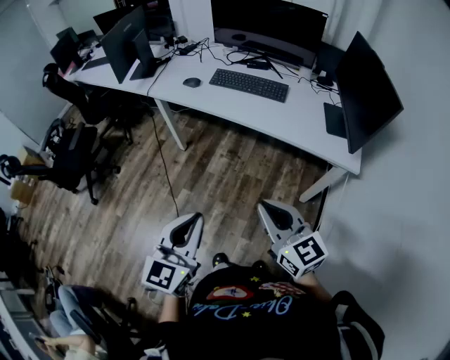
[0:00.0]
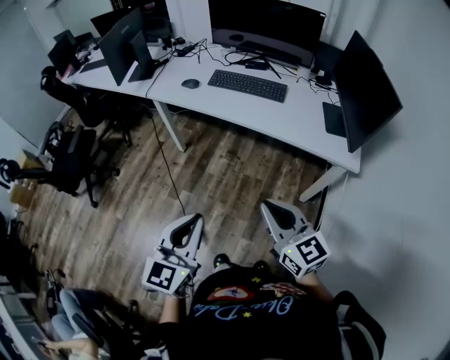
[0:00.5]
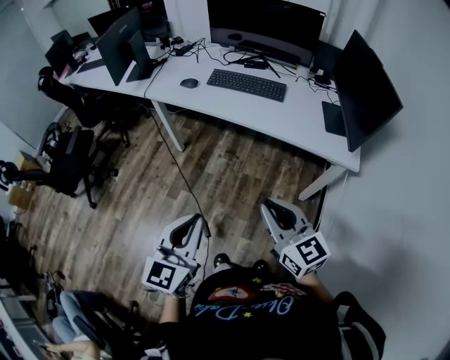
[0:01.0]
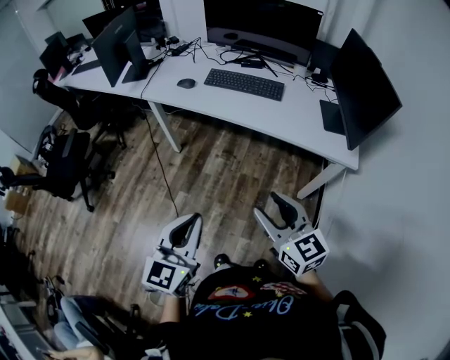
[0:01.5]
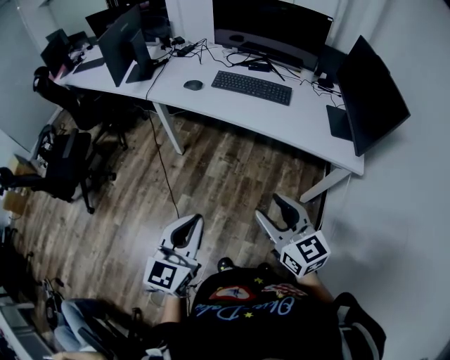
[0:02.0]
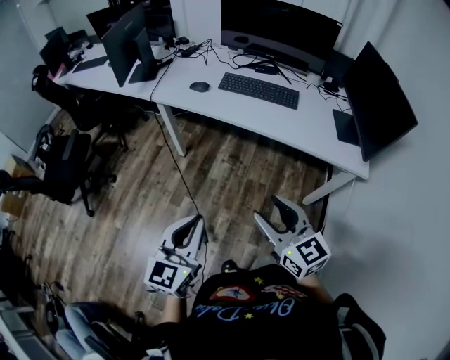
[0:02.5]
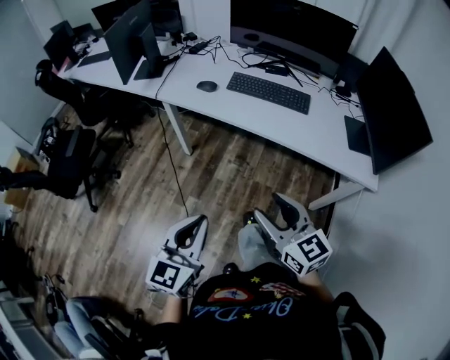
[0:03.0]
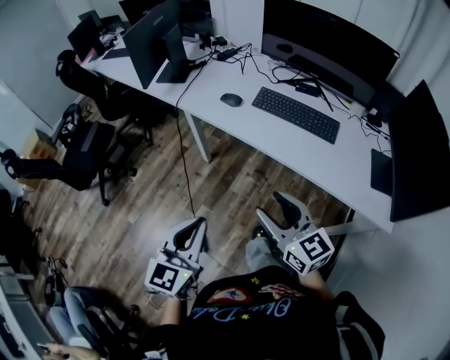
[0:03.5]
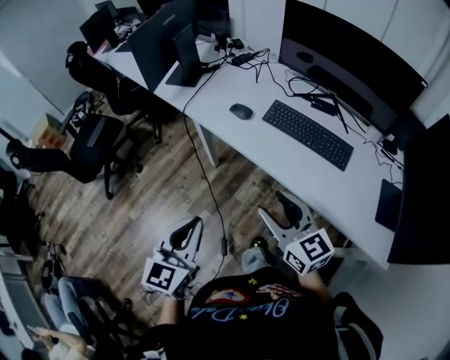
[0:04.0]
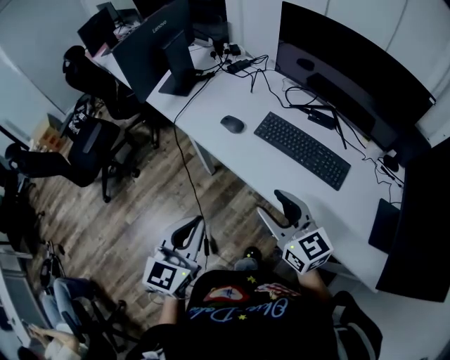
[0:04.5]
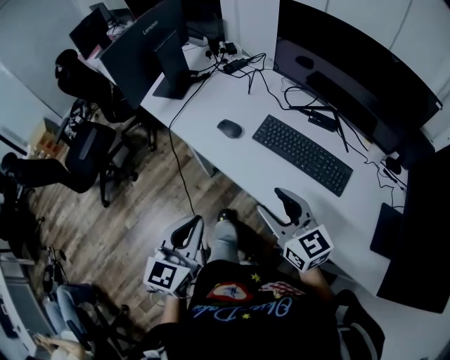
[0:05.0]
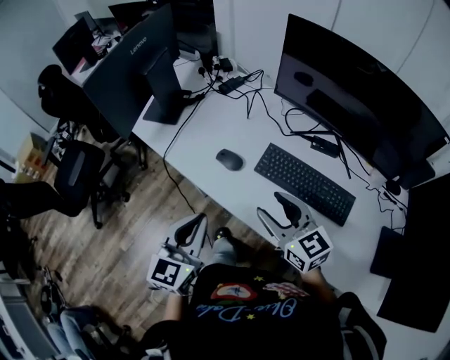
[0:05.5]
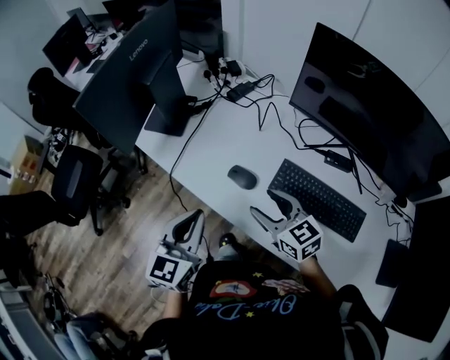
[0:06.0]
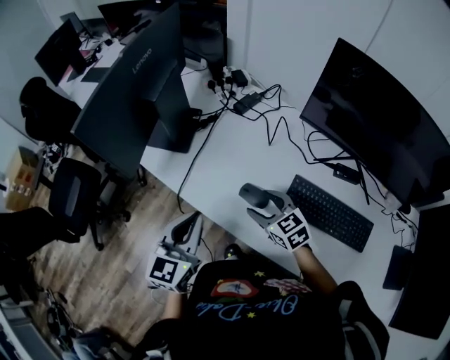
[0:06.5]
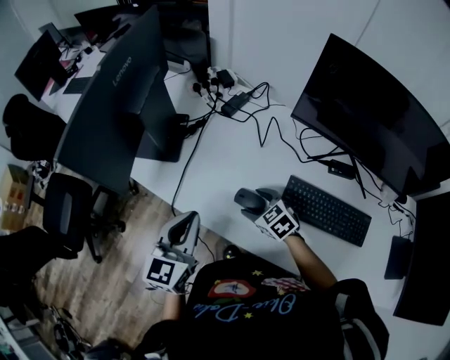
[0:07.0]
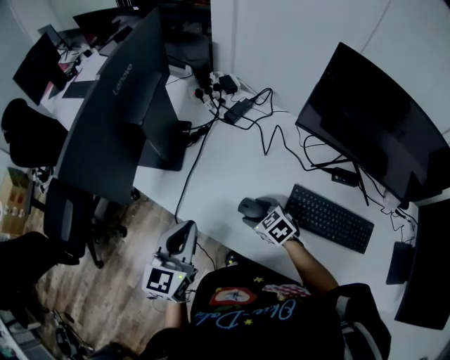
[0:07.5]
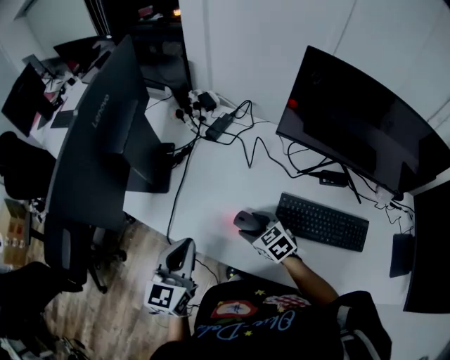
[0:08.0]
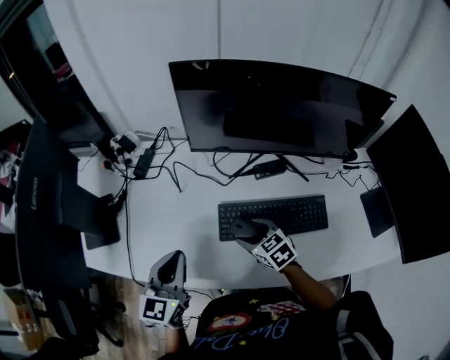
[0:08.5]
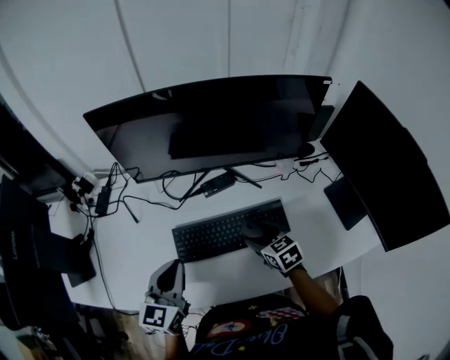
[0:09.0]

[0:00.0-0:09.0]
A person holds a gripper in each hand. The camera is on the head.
0:00.0 to 0:02.0: The left gripper is displaced to the left by about 5 cm. The right gripper ends up roughly 5 cm from where it was, and opens.
0:02.0 to 0:04.5: Both grippers travel together forward, some 35 cm. The right gripper swivels some 20 degrees.
0:04.5 to 0:07.0: The right gripper heads forward and downward, covering approximately 40 cm, and tilts its fingers some 40 degrees downward. The left gripper travels forward by roughly 40 cm.
0:07.0 to 0:09.0: The left gripper moves some 30 cm, and swivels roughly 30 degrees, while the right gripper shifts by about 40 cm, and changes its angle by some 50 degrees.

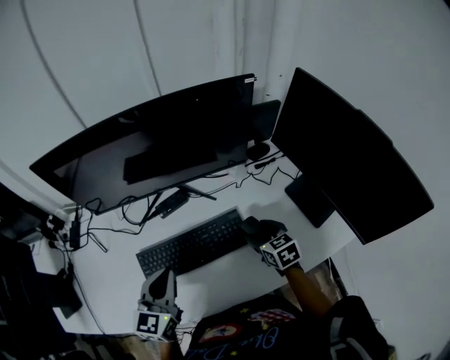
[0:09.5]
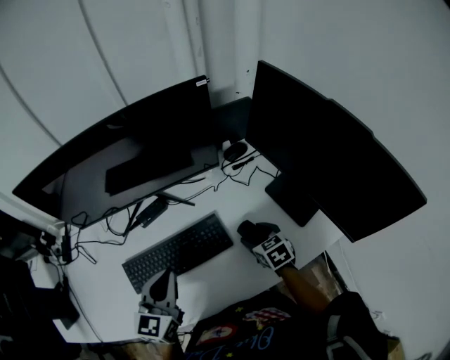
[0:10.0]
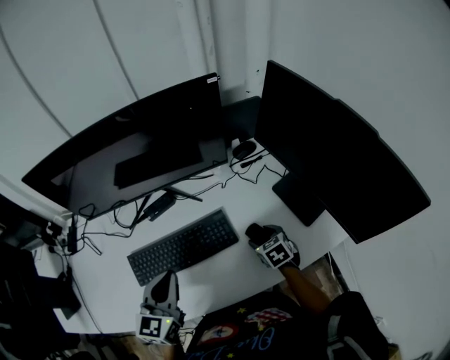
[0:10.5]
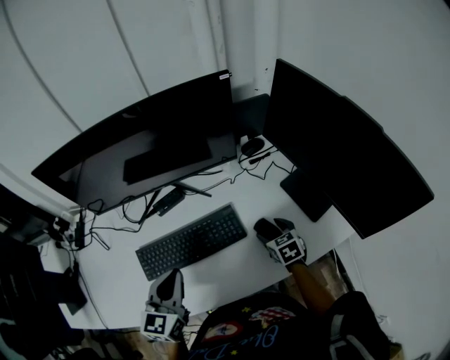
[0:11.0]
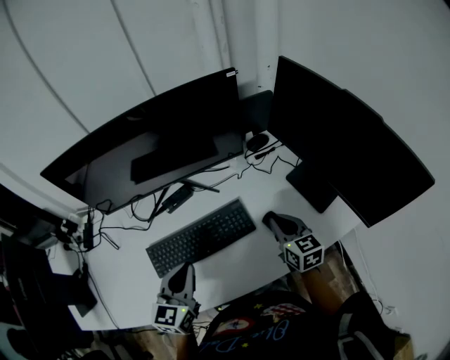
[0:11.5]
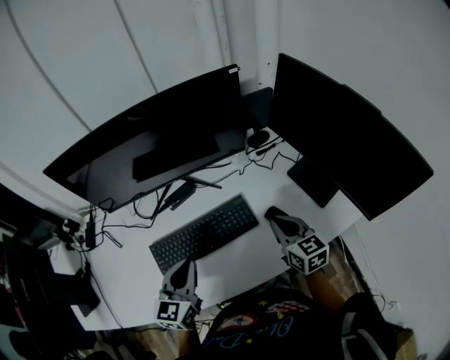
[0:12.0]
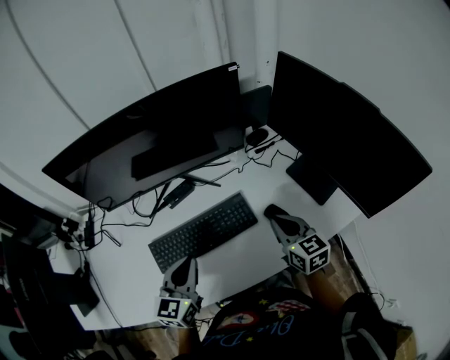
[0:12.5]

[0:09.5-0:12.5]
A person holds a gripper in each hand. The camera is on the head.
0:09.5 to 0:11.0: The right gripper heads to the right and downward, covering roughly 10 cm, while the left gripper ends up about 5 cm from where it was.
0:11.0 to 0:12.5: The right gripper heads upward, covering some 15 cm, rotates approximately 30 degrees, and closes.

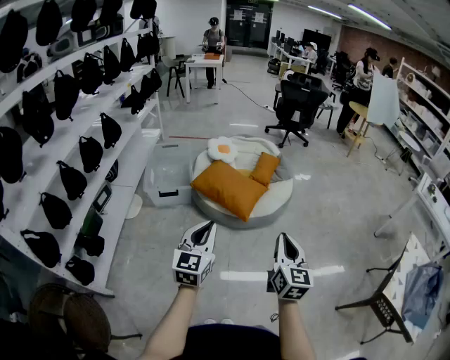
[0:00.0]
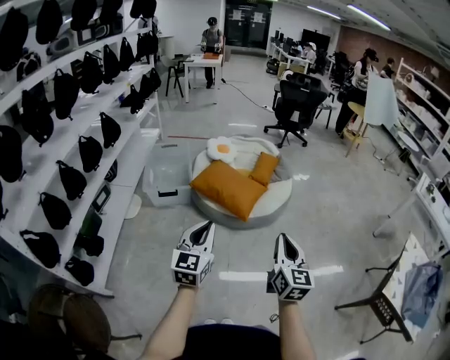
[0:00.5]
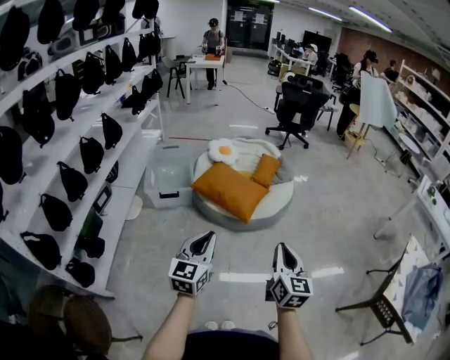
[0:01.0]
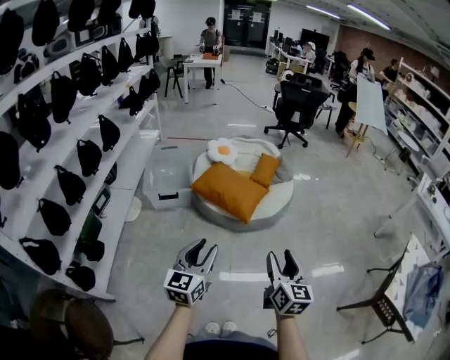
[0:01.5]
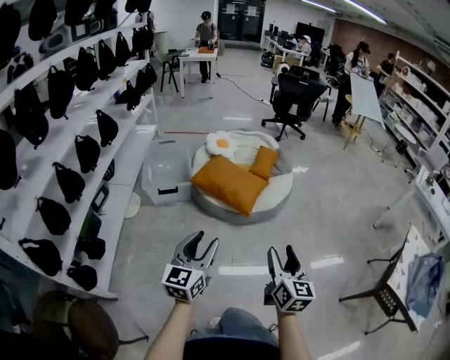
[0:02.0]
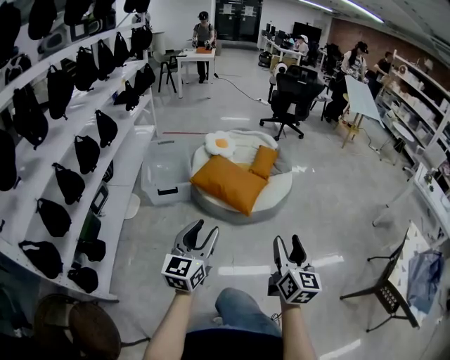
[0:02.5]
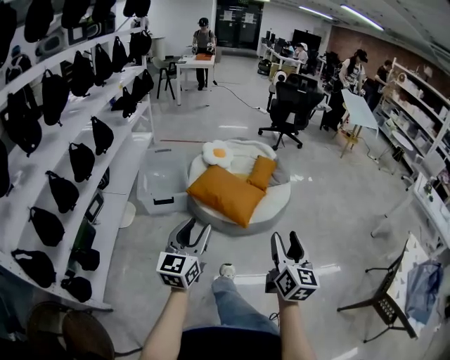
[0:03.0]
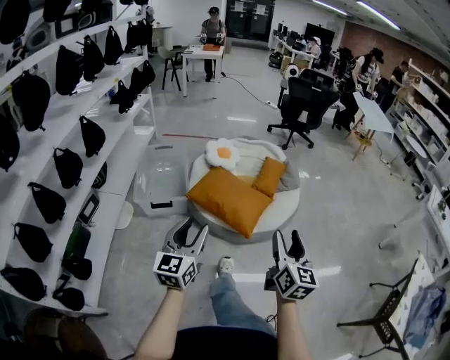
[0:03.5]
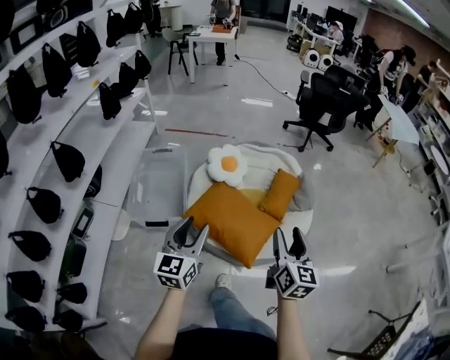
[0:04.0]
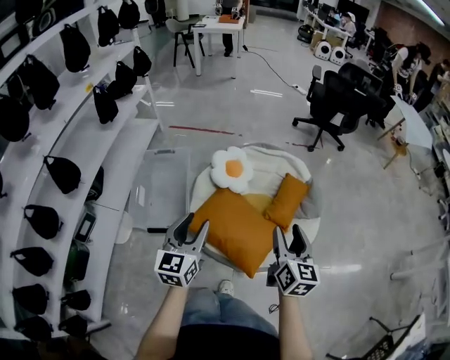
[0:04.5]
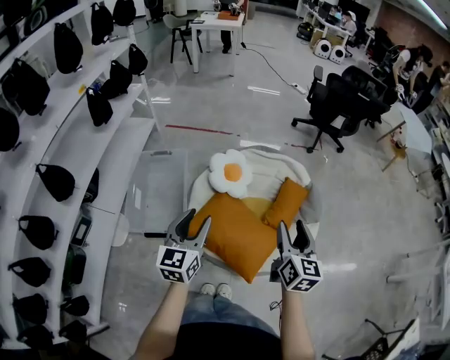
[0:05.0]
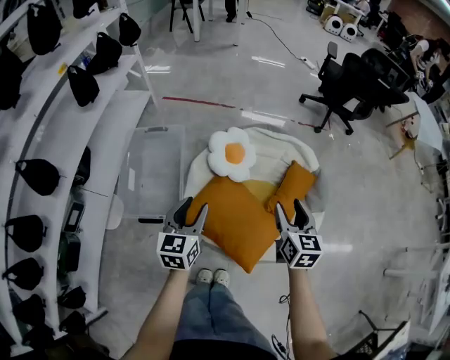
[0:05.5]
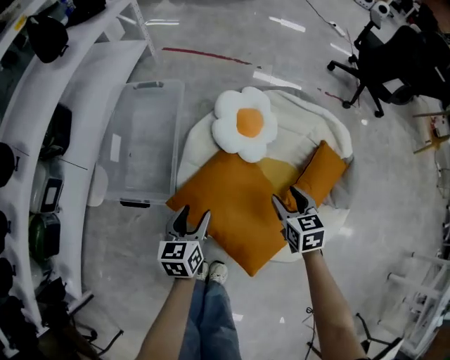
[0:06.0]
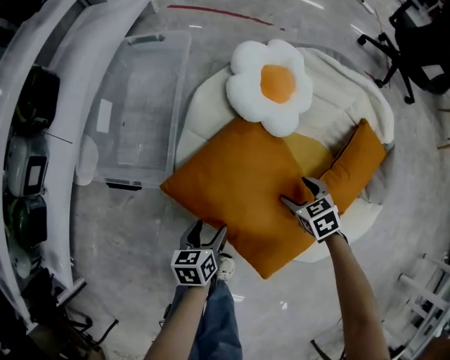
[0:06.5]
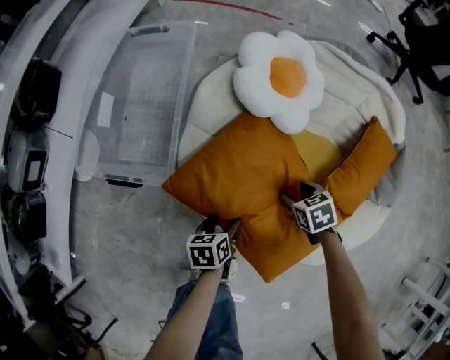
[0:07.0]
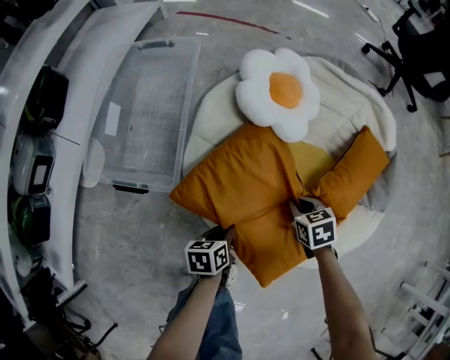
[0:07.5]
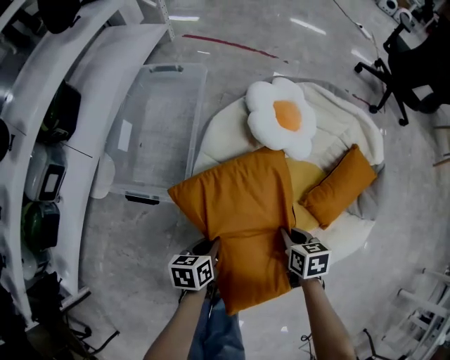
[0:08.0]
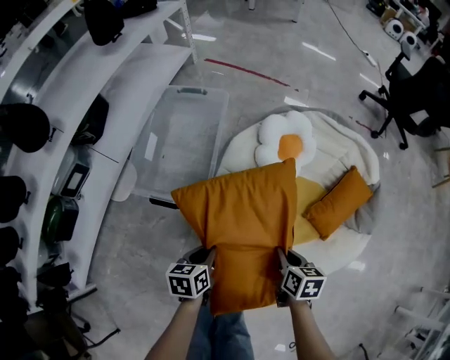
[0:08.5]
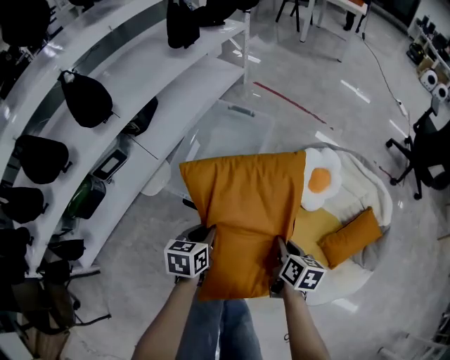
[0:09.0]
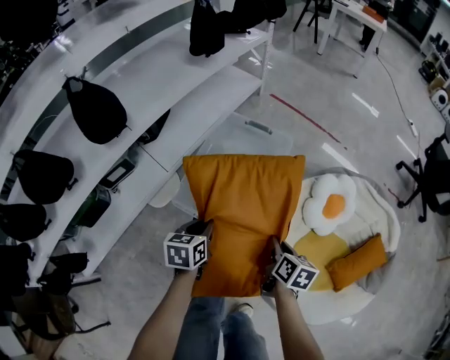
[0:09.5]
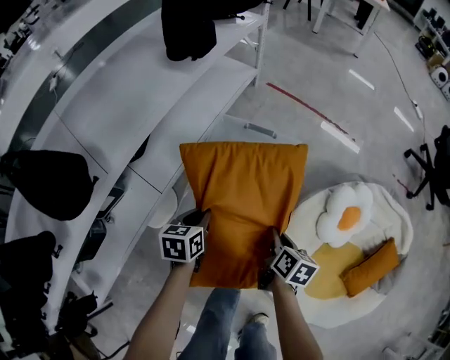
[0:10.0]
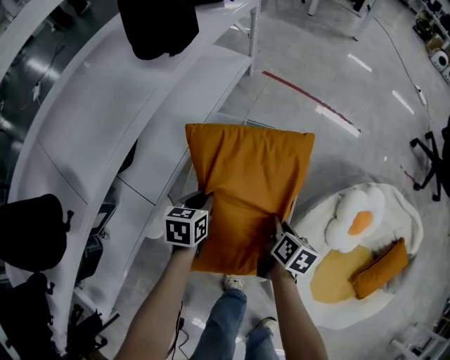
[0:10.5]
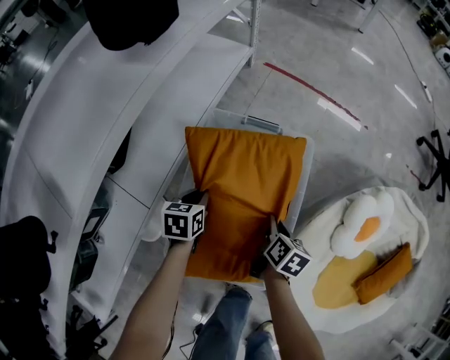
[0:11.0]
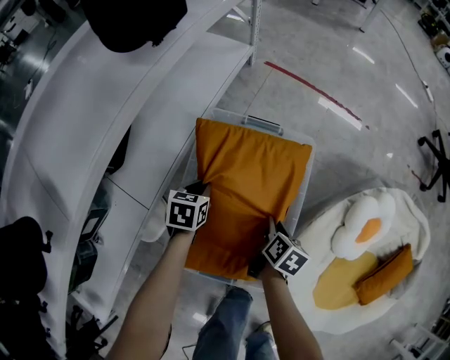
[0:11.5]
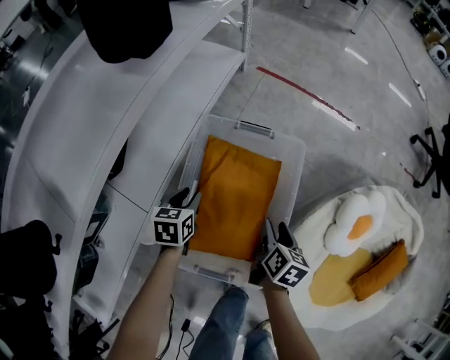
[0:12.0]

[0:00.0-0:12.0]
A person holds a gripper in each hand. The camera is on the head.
0:00.0 to 0:02.0: The left gripper shifts by roughly 5 cm, and opens. The right gripper ends up some 5 cm from where it was, and opens its fingers.
0:02.0 to 0:04.0: The two grippers travel together, forward, some 60 cm.
0:04.0 to 0:06.0: Both grippers move downward and forward, some 50 cm. The right gripper tips its fingers downward by approximately 30 degrees. The left gripper changes its angle by approximately 40 degrees.
0:06.0 to 0:08.0: The two grippers go approximately 20 cm downward and backward. The right gripper turns by about 20 degrees, and closes up; the left gripper changes its angle by approximately 30 degrees, and closes its fingers.
0:08.0 to 0:10.0: The pair of grippers is taken to the left and forward, roughly 50 cm. The right gripper turns by roughly 20 degrees.
0:10.0 to 0:12.0: The two grippers go some 15 cm forward and downward. The right gripper opens its fingers.

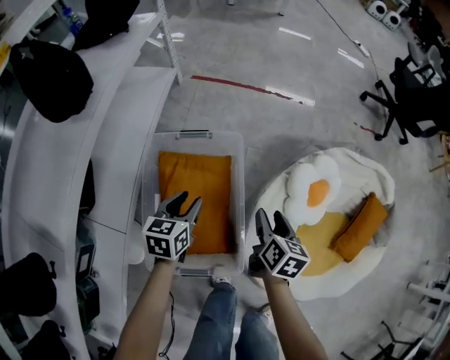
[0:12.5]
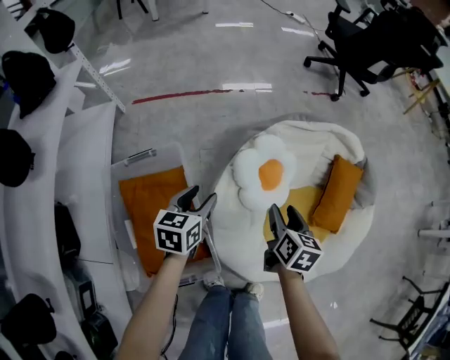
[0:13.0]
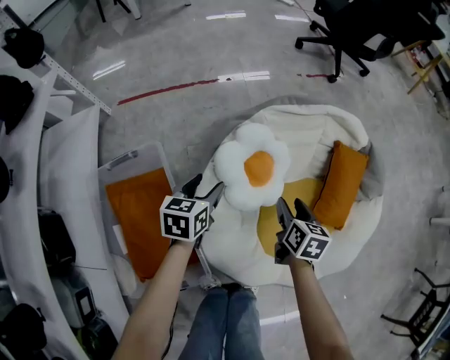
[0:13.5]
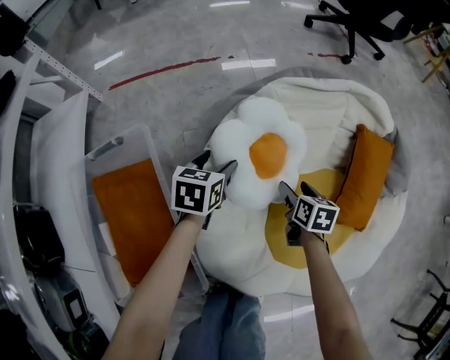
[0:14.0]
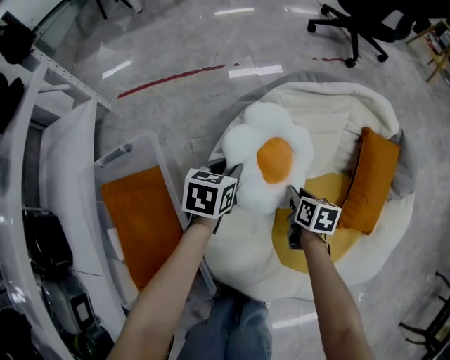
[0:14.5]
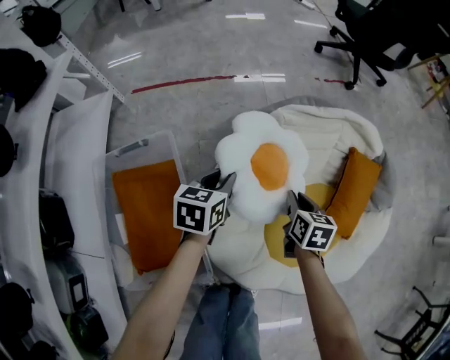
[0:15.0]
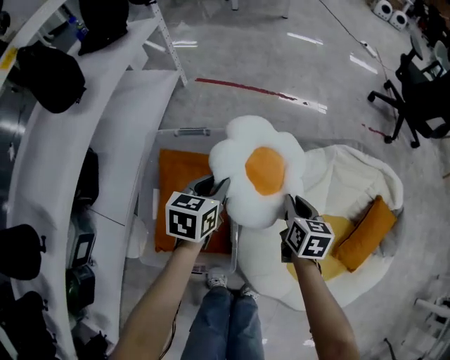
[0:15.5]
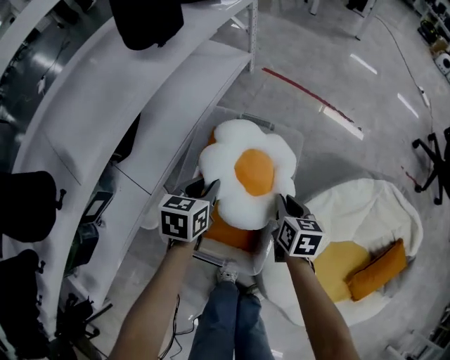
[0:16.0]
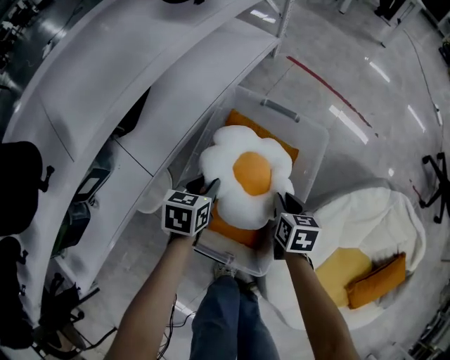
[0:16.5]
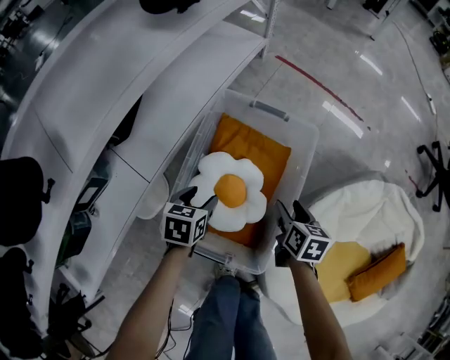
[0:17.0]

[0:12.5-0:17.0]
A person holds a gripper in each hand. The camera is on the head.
0:12.5 to 0:14.5: The right gripper shifts roughly 40 cm to the right and downward, while the left gripper shifts about 40 cm to the right, forward and downward, swivels about 30 degrees, and opens, then closes again.
0:14.5 to 0:17.0: The two grippers travel together, some 50 cm. The left gripper changes its angle by about 50 degrees, and opens its fingers. The right gripper changes its angle by some 40 degrees.
